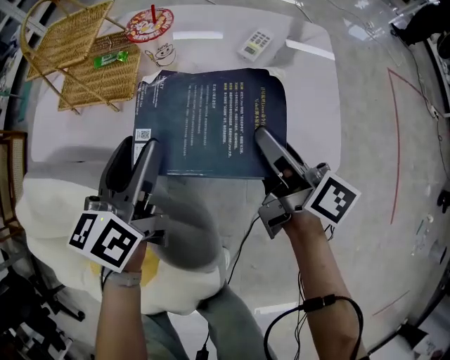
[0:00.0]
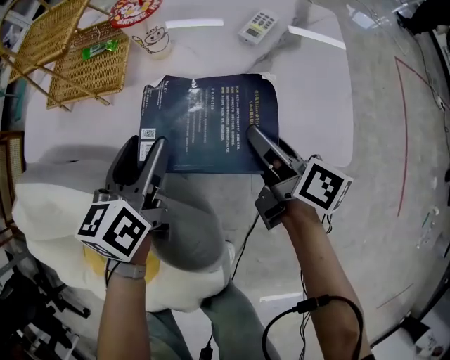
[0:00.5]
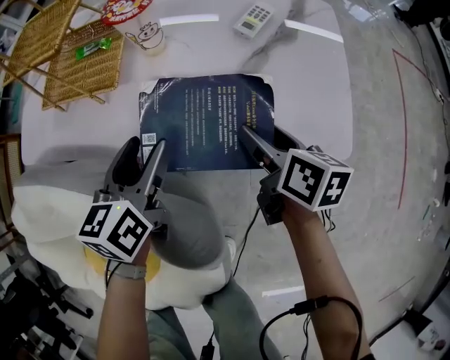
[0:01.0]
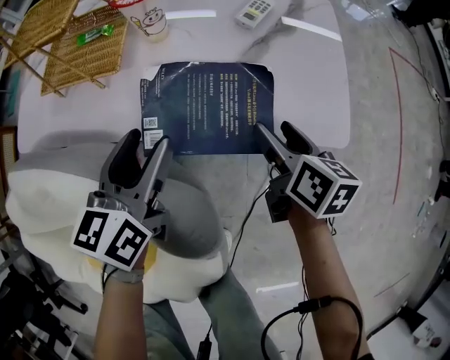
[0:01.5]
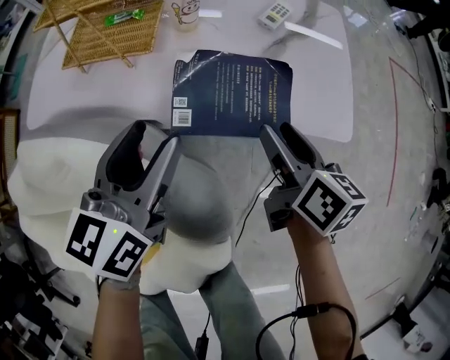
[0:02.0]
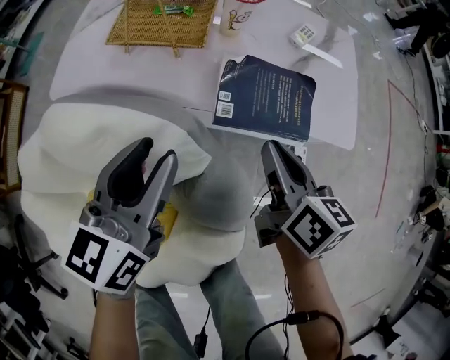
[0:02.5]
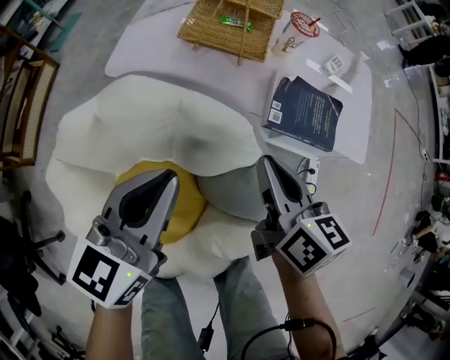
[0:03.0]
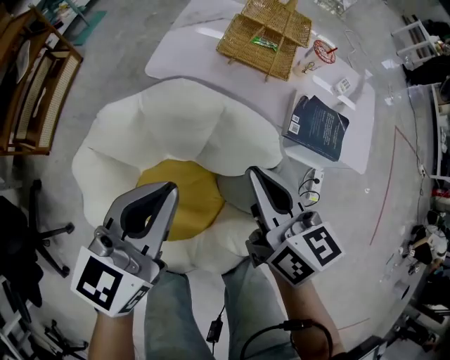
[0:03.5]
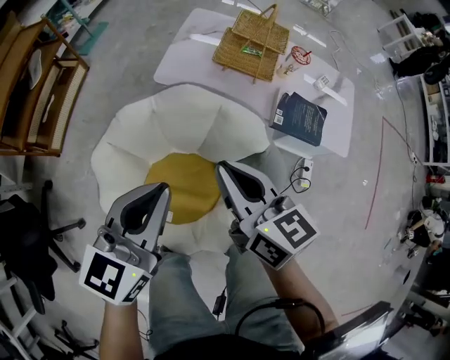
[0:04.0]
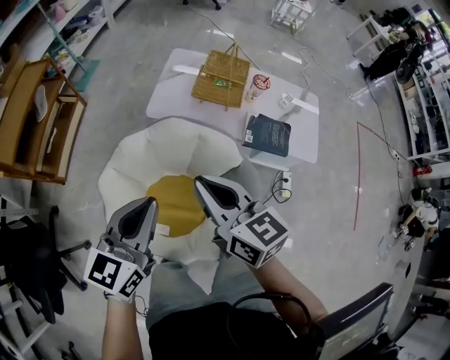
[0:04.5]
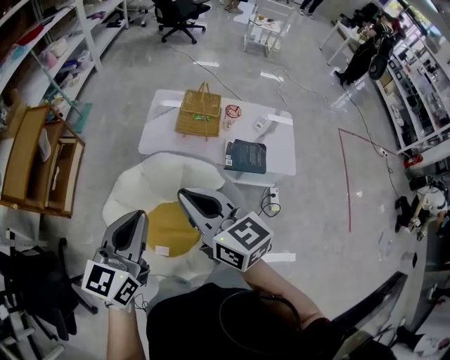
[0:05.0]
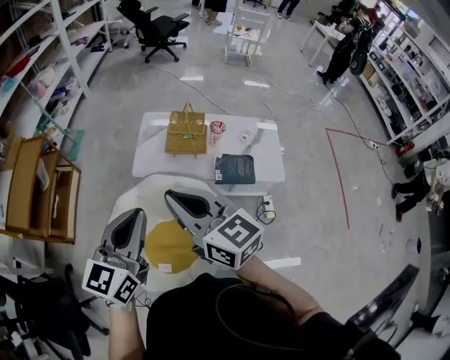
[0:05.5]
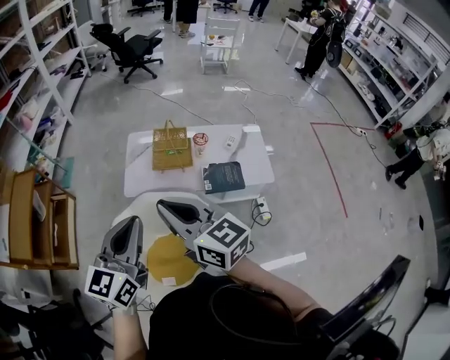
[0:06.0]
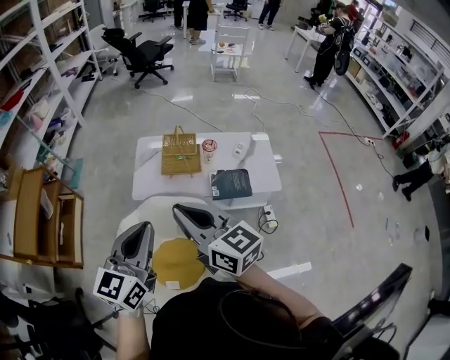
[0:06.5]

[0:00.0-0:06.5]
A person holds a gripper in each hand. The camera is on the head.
0:00.0 to 0:02.0: The left gripper shifts approximately 10 cm upward and backward; the right gripper moves backward and upward, some 10 cm, and changes its angle by roughly 30 degrees.
0:02.0 to 0:04.5: The two grippers travel together, to the left and backward, roughly 50 cm. The grippers both shift upward by roughly 40 cm. The left gripper closes up. The right gripper swivels some 40 degrees, and closes up.
0:04.5 to 0:06.5: The left gripper heads upward and to the right, covering about 20 cm; the right gripper shifts some 20 cm upward.

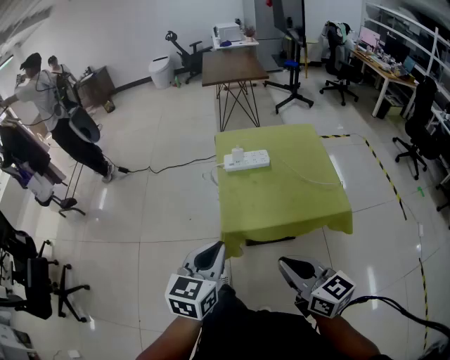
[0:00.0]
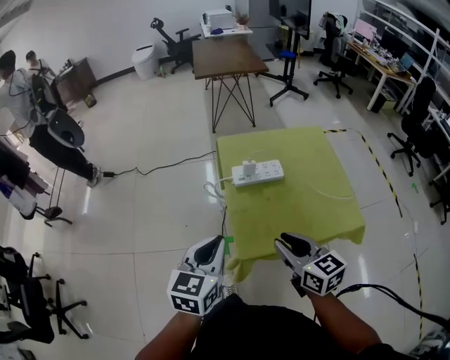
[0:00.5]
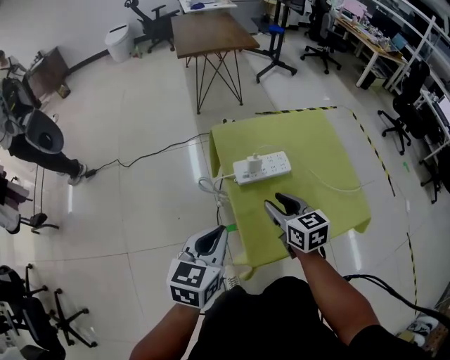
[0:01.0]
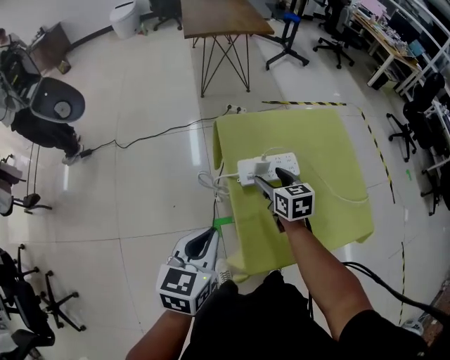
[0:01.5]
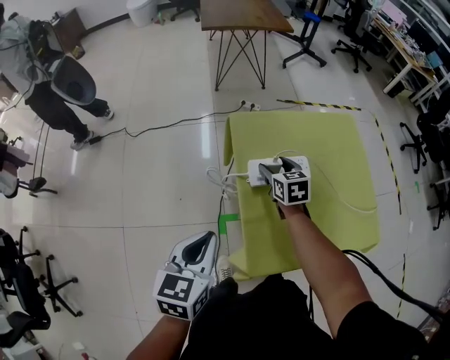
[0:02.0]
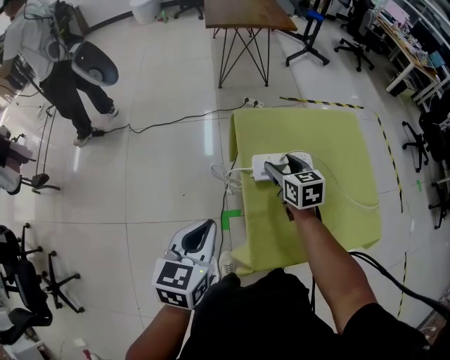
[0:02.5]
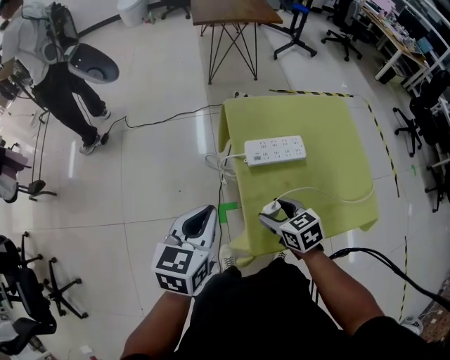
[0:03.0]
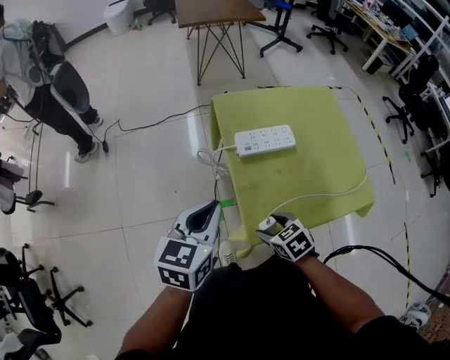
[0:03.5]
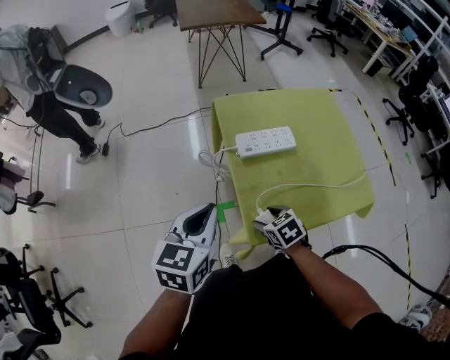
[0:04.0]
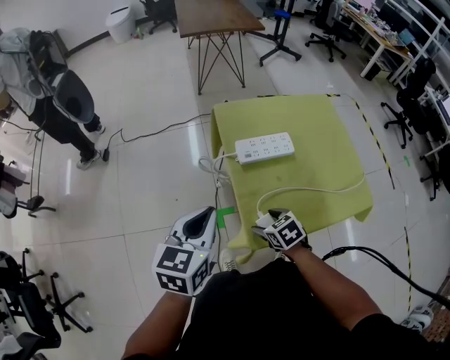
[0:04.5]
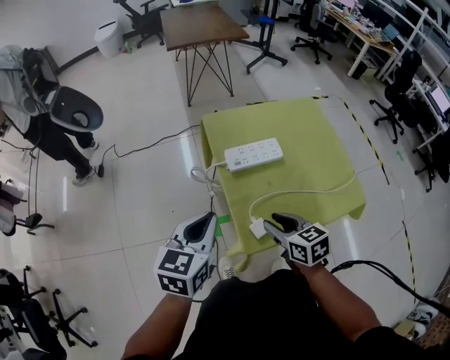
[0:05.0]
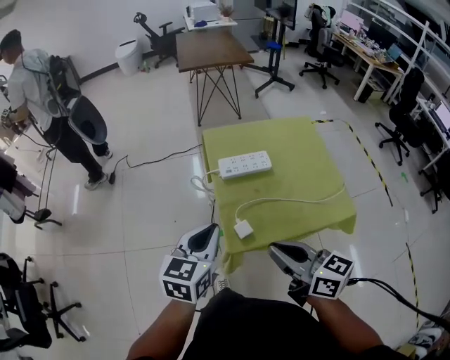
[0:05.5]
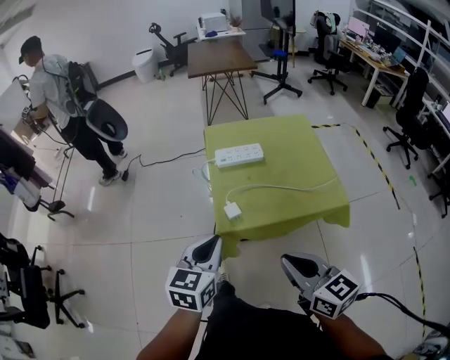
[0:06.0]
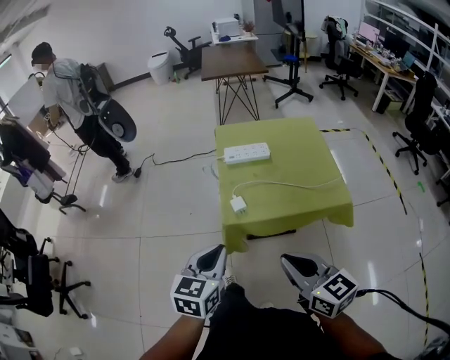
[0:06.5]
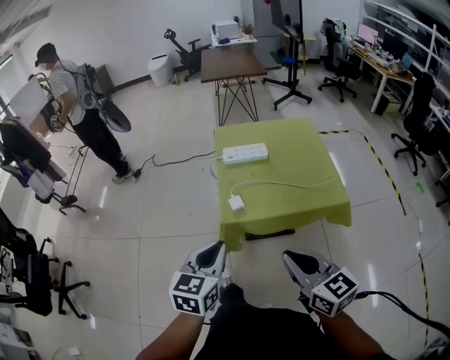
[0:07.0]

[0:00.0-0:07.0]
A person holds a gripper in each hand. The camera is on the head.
0:00.0 to 0:02.0: The left gripper moves forward and to the left, about 30 cm, while the right gripper is displaced forward and downward by about 60 cm, turns by some 30 degrees, and opens its fingers.
0:02.0 to 0:03.5: The right gripper moves backward, about 30 cm, and swivels some 30 degrees.
0:03.5 to 0:05.0: The right gripper moves upward, approximately 10 cm, and swivels approximately 30 degrees.
0:05.0 to 0:07.0: The right gripper is displaced backward and upward by some 35 cm, rotates roughly 30 degrees, and closes its fingers, while the left gripper shifts about 30 cm backward.

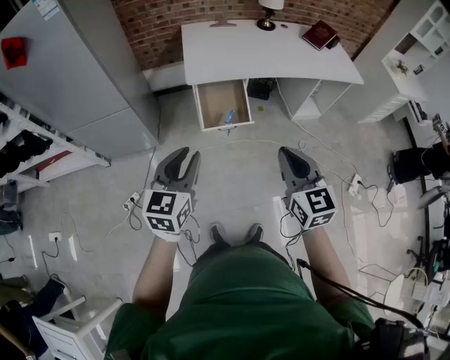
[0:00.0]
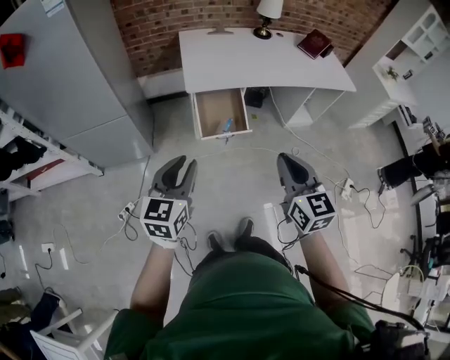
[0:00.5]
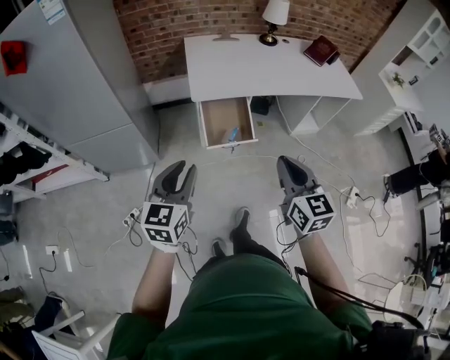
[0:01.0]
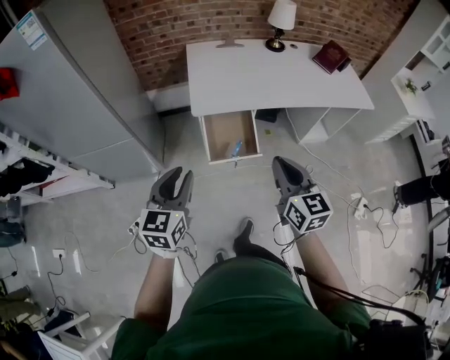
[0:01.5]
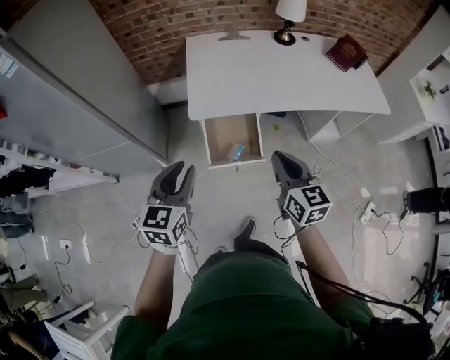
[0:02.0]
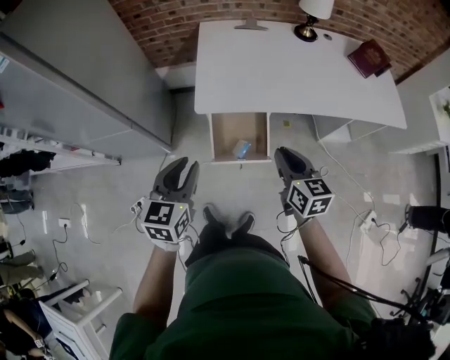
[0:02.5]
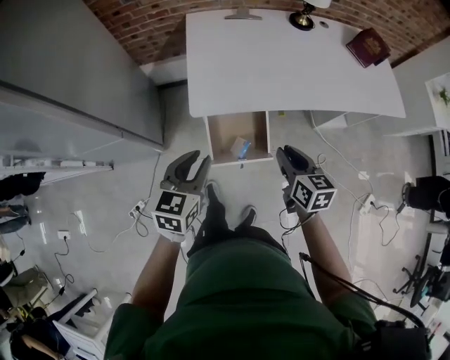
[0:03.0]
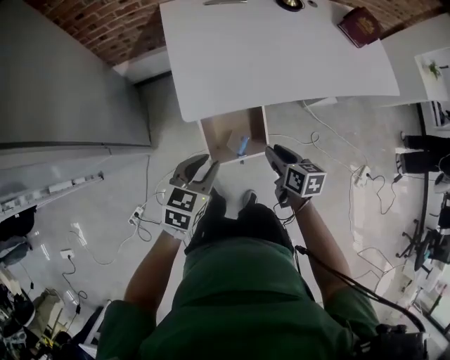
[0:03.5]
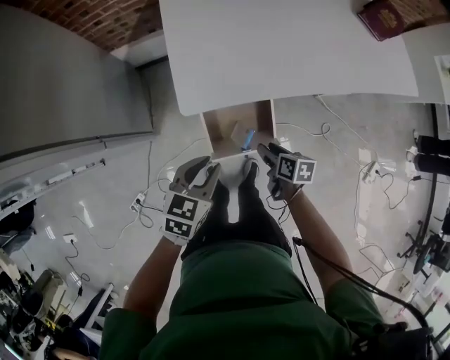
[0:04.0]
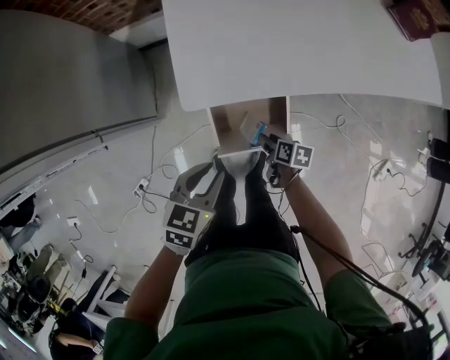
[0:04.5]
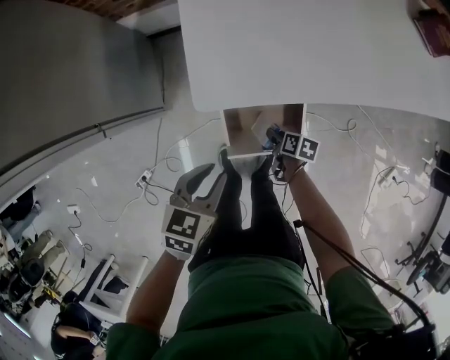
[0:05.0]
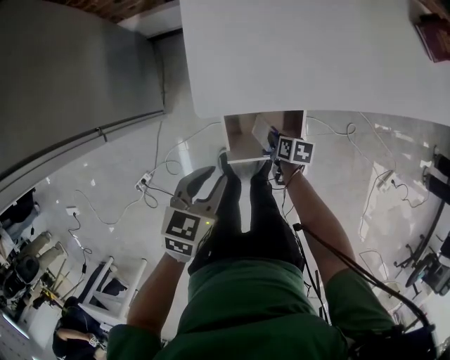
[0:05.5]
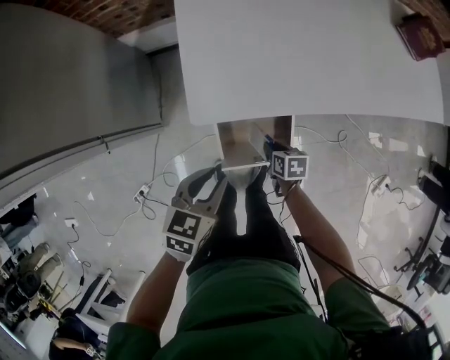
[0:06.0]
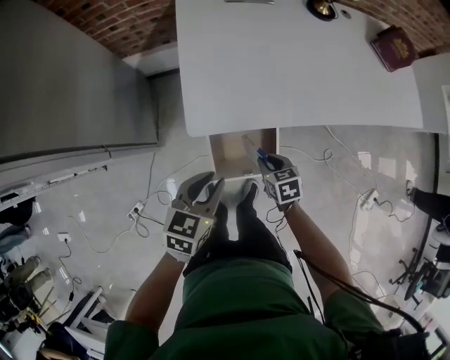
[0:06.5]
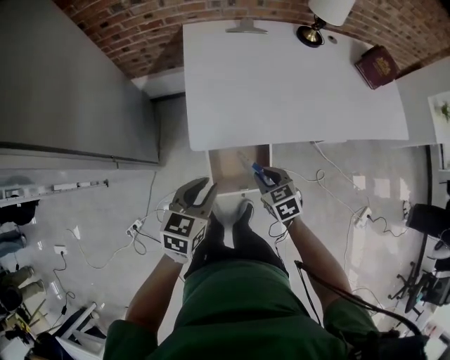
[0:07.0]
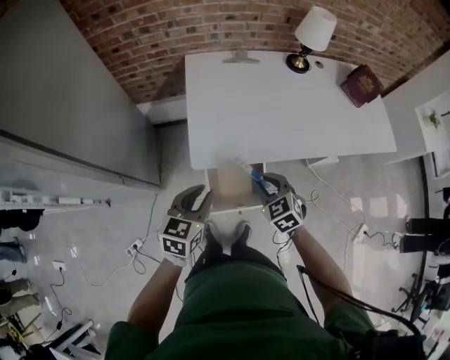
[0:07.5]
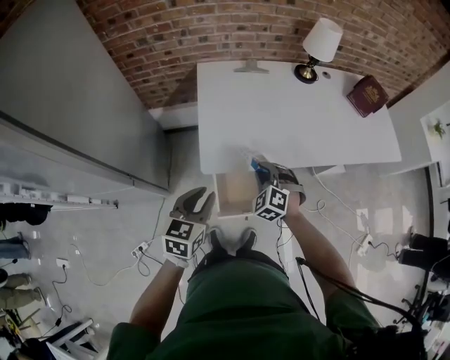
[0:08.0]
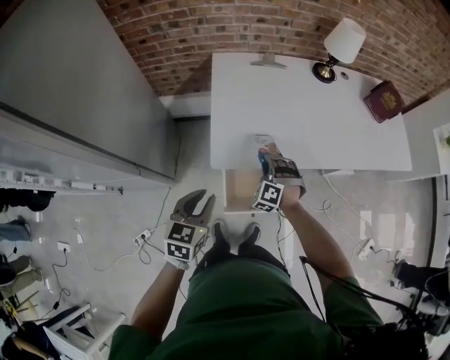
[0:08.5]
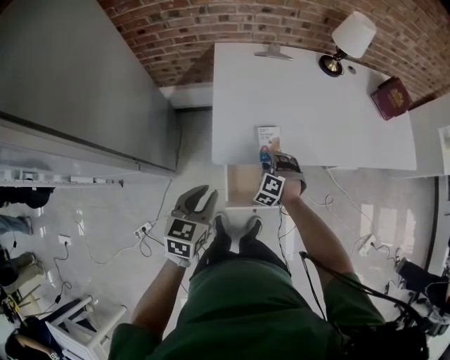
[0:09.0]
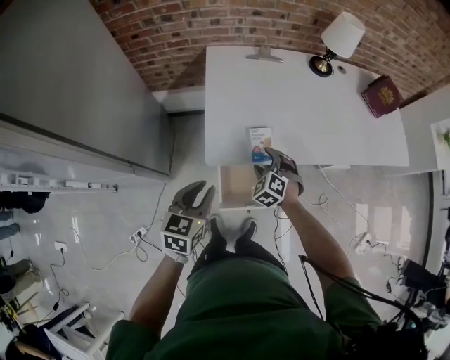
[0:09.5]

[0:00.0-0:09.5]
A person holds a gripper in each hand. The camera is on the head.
0:00.0 to 0:02.0: The grippers both shift forward by roughly 25 cm.
0:02.0 to 0:04.0: The right gripper goes roughly 30 cm downward, tilts its fingers about 30 degrees downward, and opens. Meanwhile the left gripper heads downward and forward, covering approximately 25 cm, and rotates roughly 30 degrees.
0:04.0 to 0:05.5: The left gripper shifts about 5 cm downward. Meanwhile the right gripper goes some 15 cm downward, and closes.
0:05.5 to 0:07.5: The right gripper goes about 35 cm upward, and rotates around the line of its fingers by about 60 degrees, counterclockwise from behind, while the left gripper shifts some 15 cm upward.
0:07.5 to 0:09.5: The right gripper moves forward and downward, roughly 10 cm, changes its angle by approximately 30 degrees, and opens up.

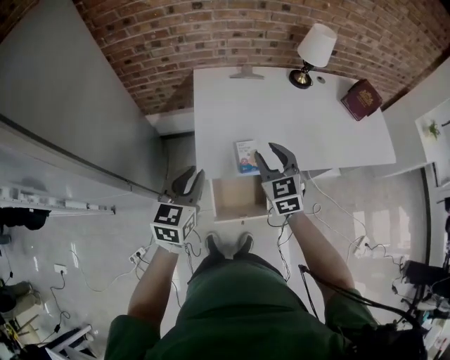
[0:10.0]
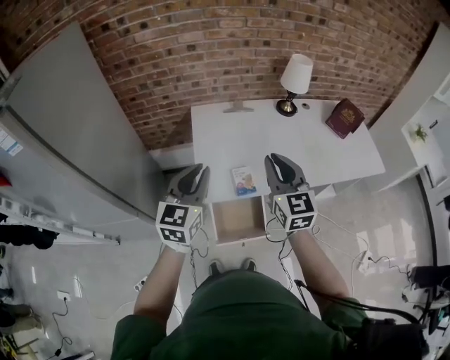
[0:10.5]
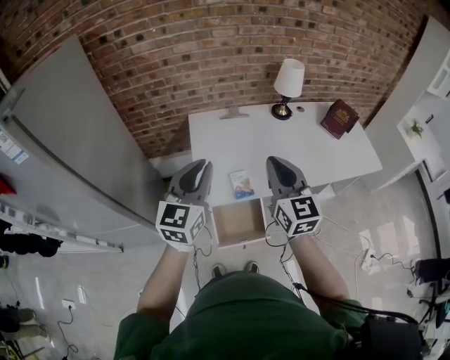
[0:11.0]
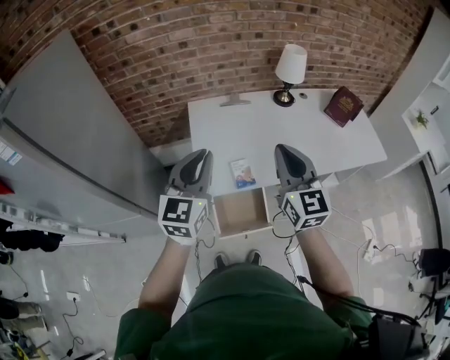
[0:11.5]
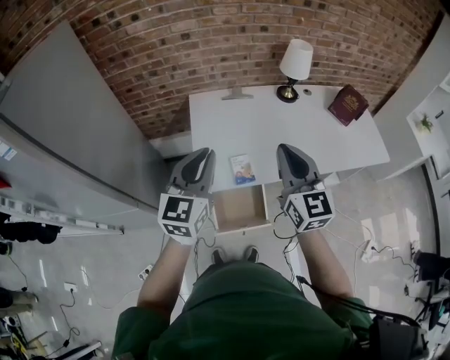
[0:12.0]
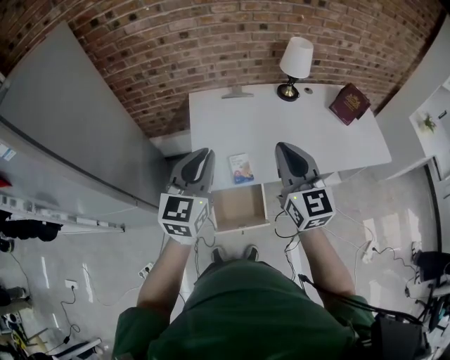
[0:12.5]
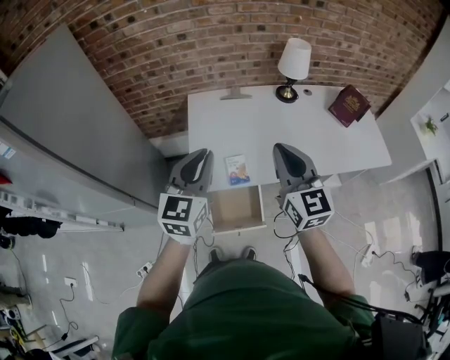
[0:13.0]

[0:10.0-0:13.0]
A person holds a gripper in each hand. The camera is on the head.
0:10.0 to 0:11.5: Both grippers travel together upward, approximately 20 cm. The left gripper rotates about 20 degrees, while the right gripper changes its angle by some 30 degrees, and closes up.
0:11.5 to 0:13.0: The grippers move only a little.
